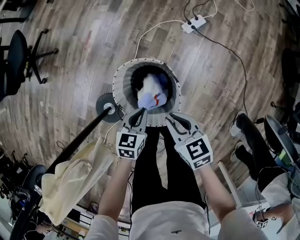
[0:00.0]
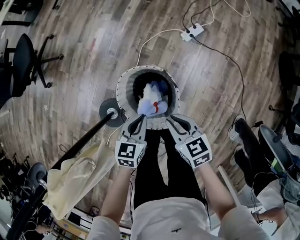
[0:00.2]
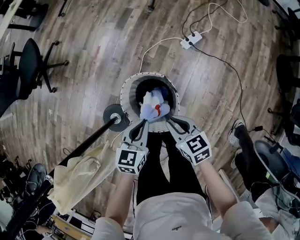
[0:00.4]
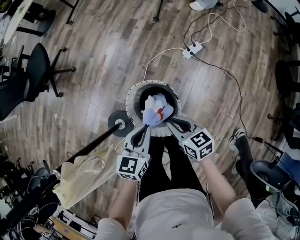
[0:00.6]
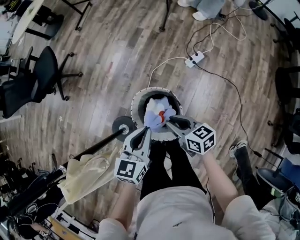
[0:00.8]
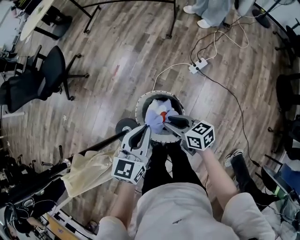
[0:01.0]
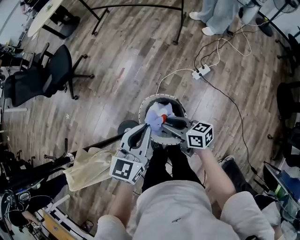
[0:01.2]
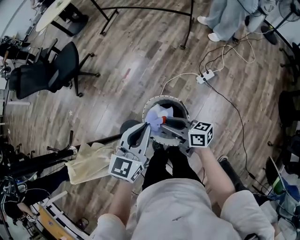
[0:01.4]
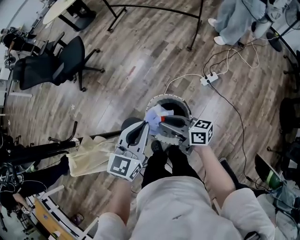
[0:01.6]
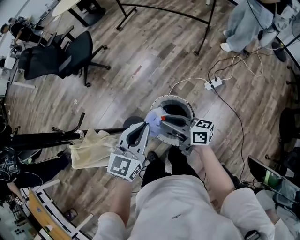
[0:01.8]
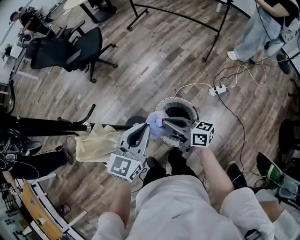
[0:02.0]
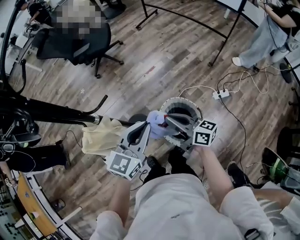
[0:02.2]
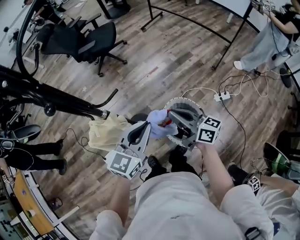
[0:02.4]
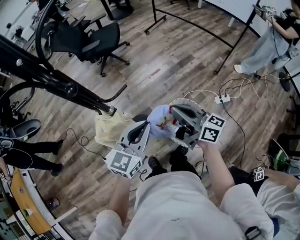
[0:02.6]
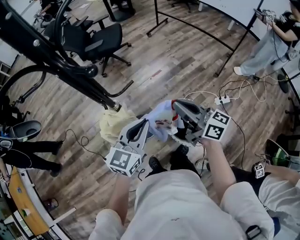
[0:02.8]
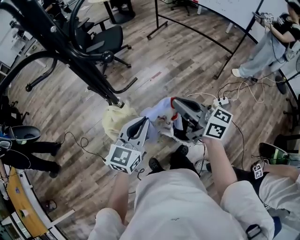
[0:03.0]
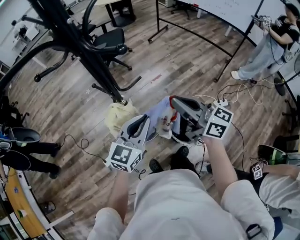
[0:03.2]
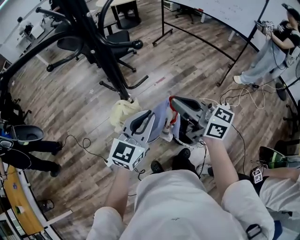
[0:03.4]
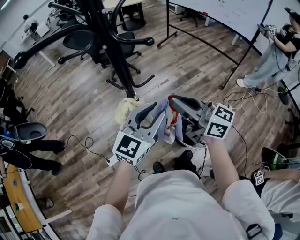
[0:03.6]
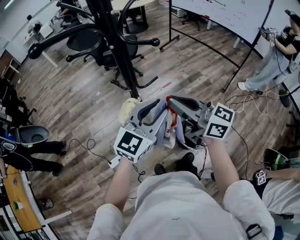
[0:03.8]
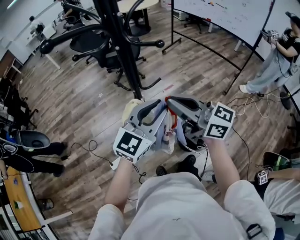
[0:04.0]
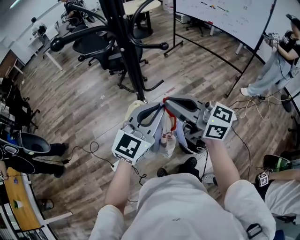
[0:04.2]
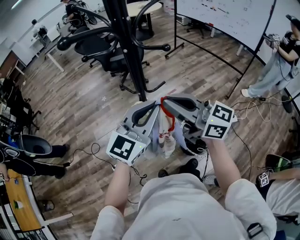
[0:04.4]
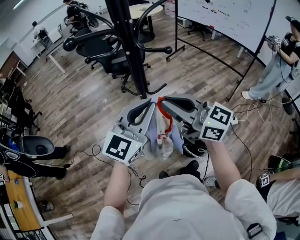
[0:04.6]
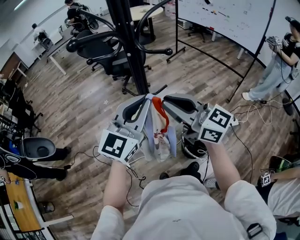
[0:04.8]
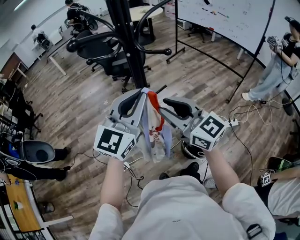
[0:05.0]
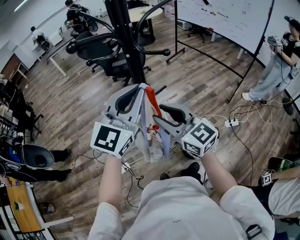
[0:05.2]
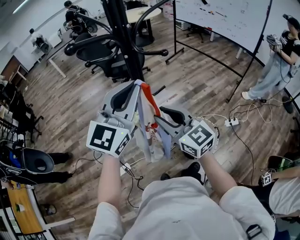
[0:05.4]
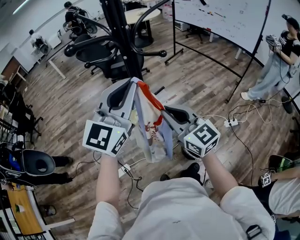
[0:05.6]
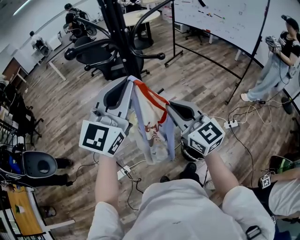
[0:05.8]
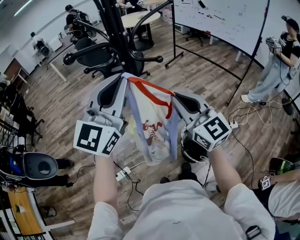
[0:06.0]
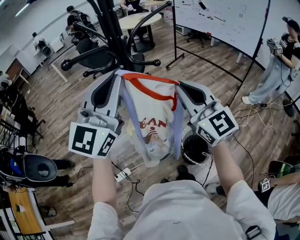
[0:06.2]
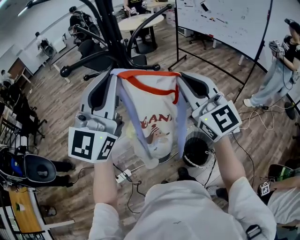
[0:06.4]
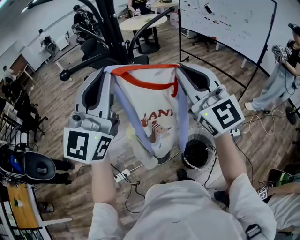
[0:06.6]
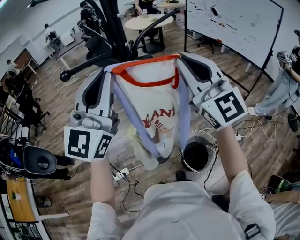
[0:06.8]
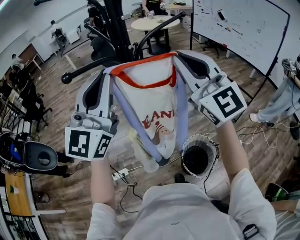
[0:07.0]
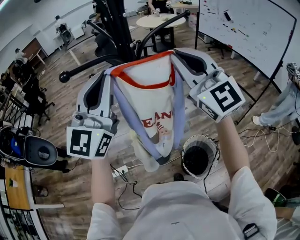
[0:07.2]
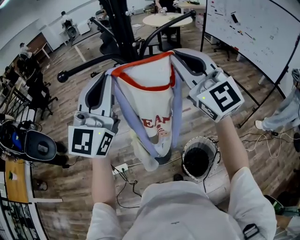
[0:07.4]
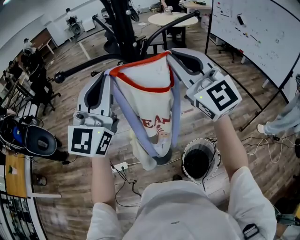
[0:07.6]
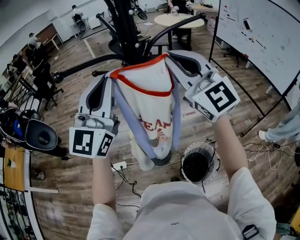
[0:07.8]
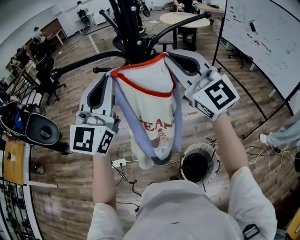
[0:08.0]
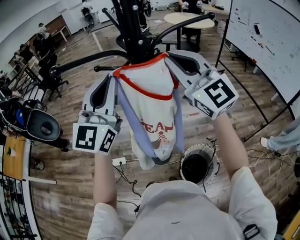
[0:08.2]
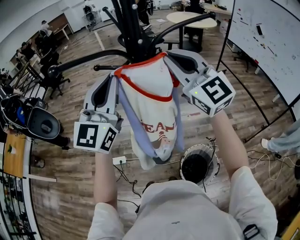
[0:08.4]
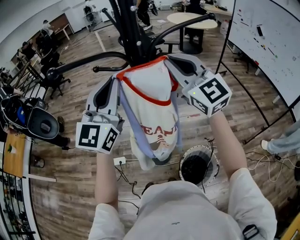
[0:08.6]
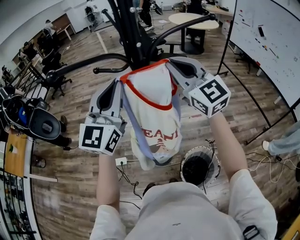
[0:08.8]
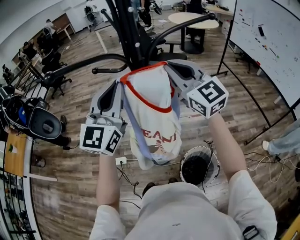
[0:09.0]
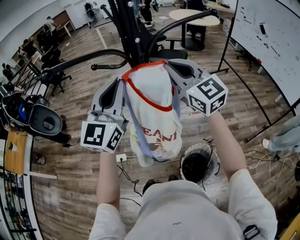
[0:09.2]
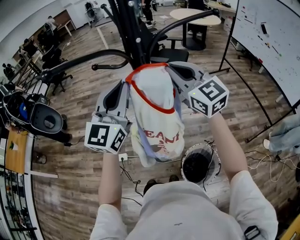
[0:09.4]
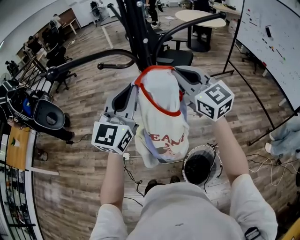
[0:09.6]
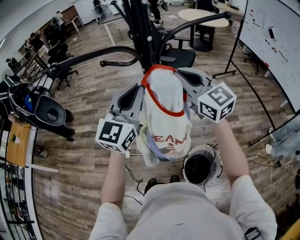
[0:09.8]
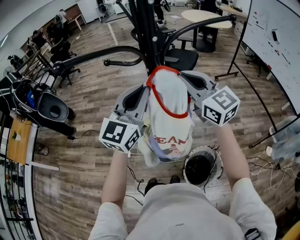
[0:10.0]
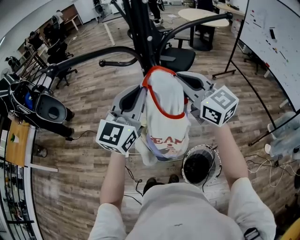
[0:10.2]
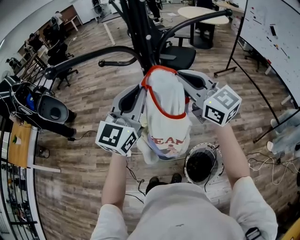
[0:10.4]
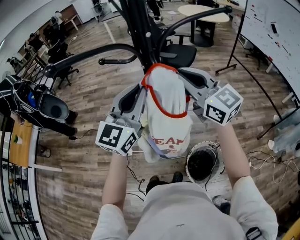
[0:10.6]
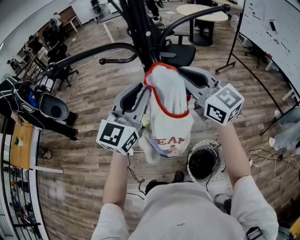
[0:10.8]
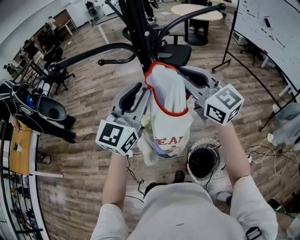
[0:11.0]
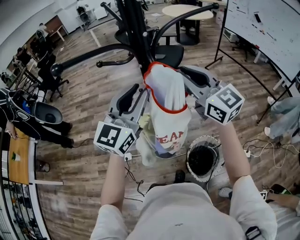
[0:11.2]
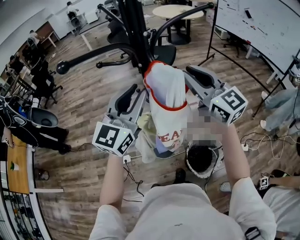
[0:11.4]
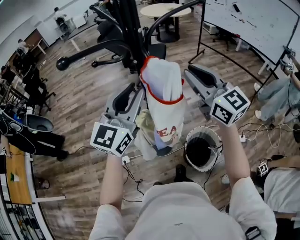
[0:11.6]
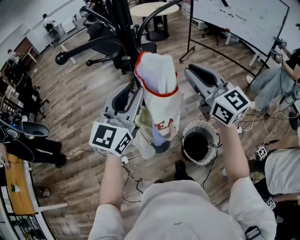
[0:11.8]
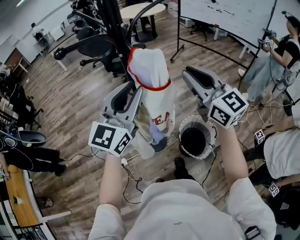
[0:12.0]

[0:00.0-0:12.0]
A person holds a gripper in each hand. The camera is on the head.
0:00.0 to 0:01.6: The right gripper shifts approximately 25 cm upward, and tilts its fingers about 40 degrees upward. Meanwhile the left gripper moves upward, some 40 cm, and rotates approximately 30 degrees.
0:01.6 to 0:03.0: The right gripper travels upward and to the left by approximately 25 cm, changes its angle by approximately 20 degrees, and closes its fingers, while the left gripper shifts roughly 25 cm to the left.
0:03.0 to 0:04.4: The right gripper shifts approximately 20 cm to the left and upward, and turns by some 20 degrees. Meanwhile the left gripper heads upward and to the left, covering approximately 15 cm, changes its angle by roughly 20 degrees, and opens, then closes once more.
0:04.4 to 0:06.0: The left gripper is displaced upward by some 15 cm; the right gripper changes its angle by approximately 40 degrees, and opens and closes again.
0:06.0 to 0:07.6: The left gripper changes place by about 5 cm, and turns by some 30 degrees. Meanwhile the right gripper shifts approximately 20 cm upward and forward, and swivels some 30 degrees.
0:07.6 to 0:09.0: The left gripper goes some 5 cm downward; the right gripper travels forward and downward by approximately 10 cm.
0:09.0 to 0:10.4: The left gripper shifts roughly 5 cm downward.
0:10.4 to 0:12.0: The left gripper shifts by approximately 5 cm, swivels roughly 30 degrees, and opens its fingers; the right gripper moves some 15 cm, and turns by some 30 degrees.

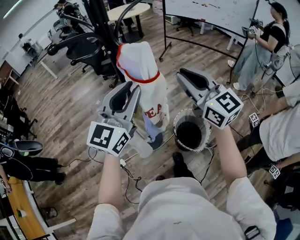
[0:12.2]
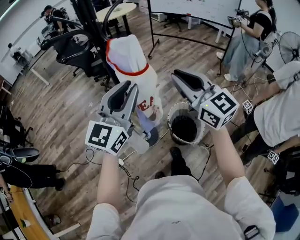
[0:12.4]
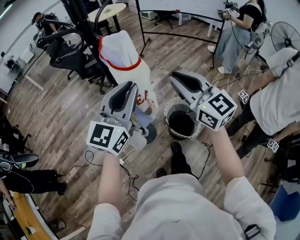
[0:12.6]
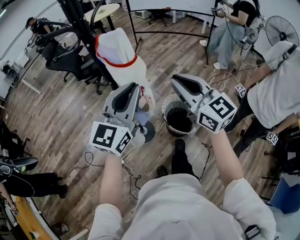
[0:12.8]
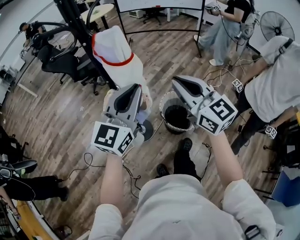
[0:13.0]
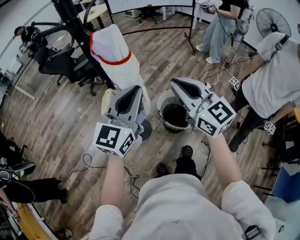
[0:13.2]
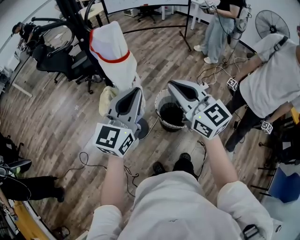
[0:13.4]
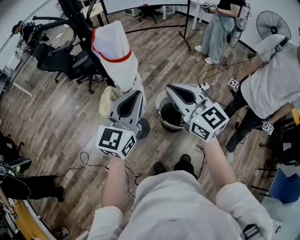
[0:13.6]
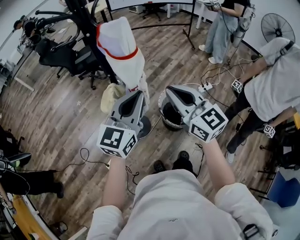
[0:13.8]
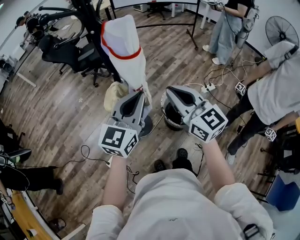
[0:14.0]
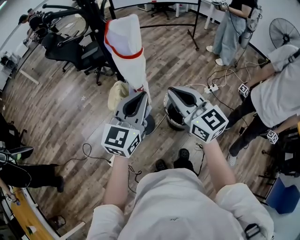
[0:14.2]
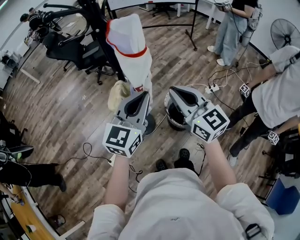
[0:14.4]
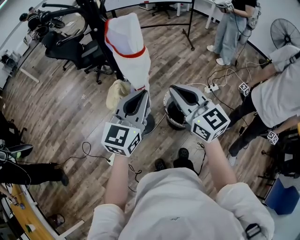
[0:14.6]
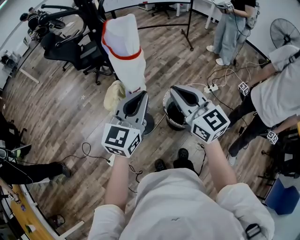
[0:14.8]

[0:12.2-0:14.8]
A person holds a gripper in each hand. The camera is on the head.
0:12.2 to 0:13.4: The right gripper heads backward, covering about 15 cm. Meanwhile the left gripper shifts about 10 cm backward, to the right and downward.
0:13.4 to 0:14.8: The grippers move only a little.

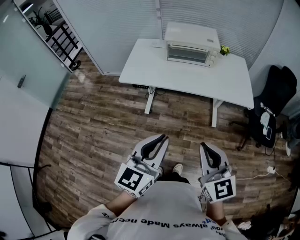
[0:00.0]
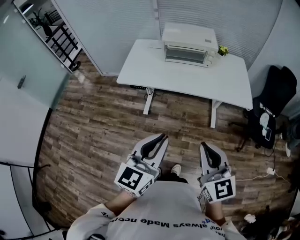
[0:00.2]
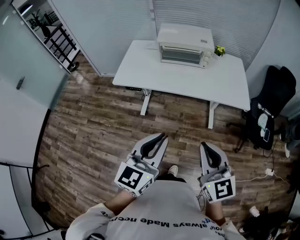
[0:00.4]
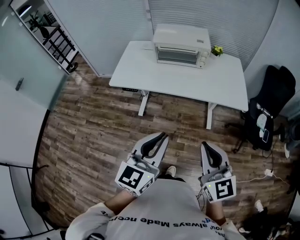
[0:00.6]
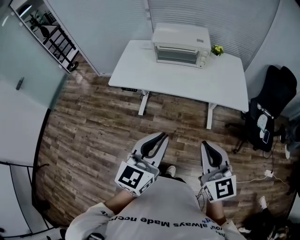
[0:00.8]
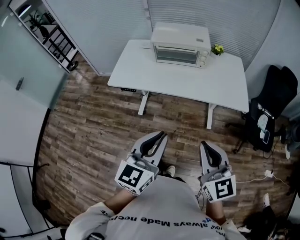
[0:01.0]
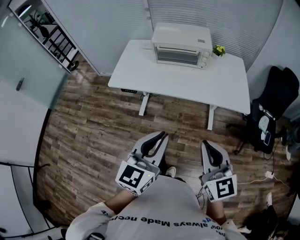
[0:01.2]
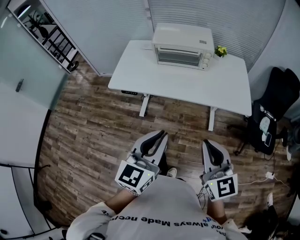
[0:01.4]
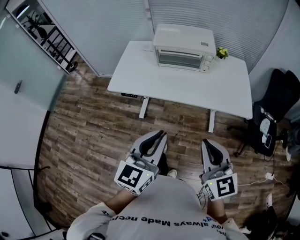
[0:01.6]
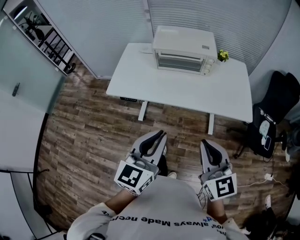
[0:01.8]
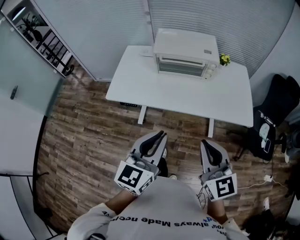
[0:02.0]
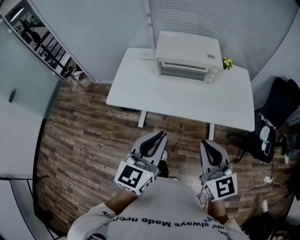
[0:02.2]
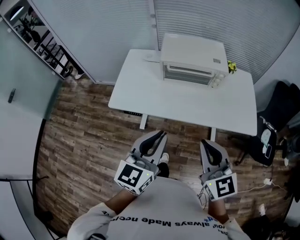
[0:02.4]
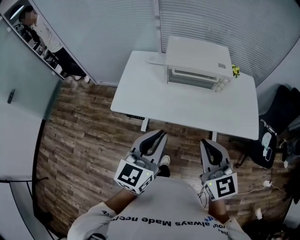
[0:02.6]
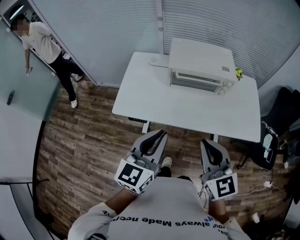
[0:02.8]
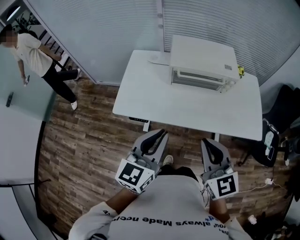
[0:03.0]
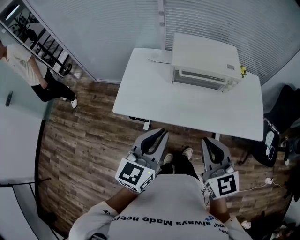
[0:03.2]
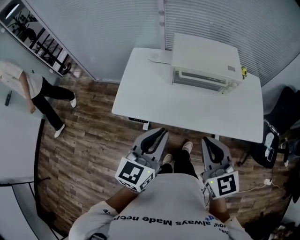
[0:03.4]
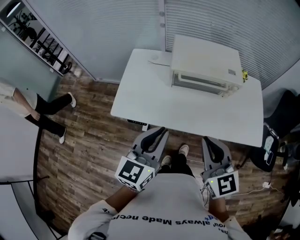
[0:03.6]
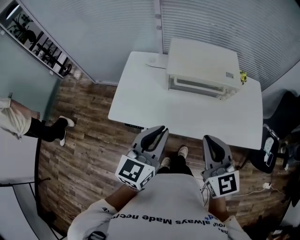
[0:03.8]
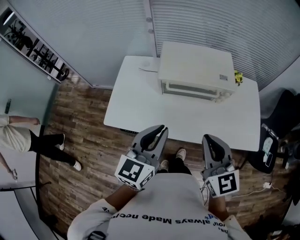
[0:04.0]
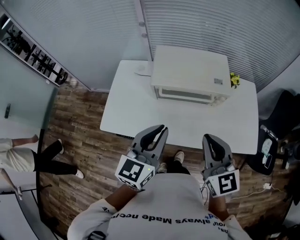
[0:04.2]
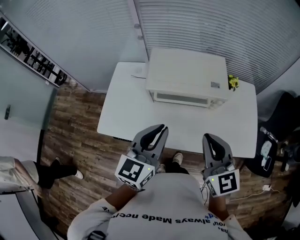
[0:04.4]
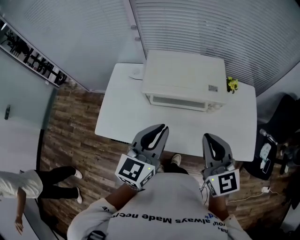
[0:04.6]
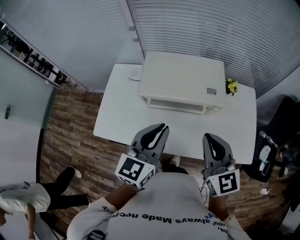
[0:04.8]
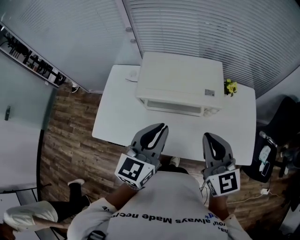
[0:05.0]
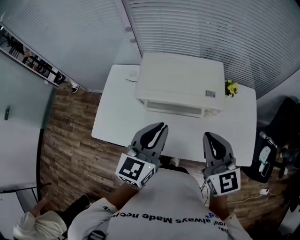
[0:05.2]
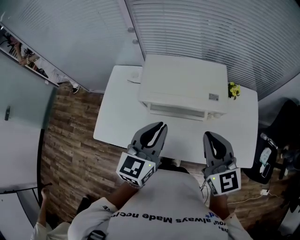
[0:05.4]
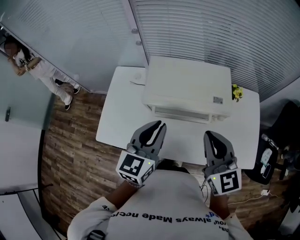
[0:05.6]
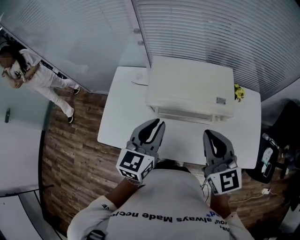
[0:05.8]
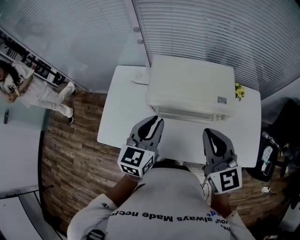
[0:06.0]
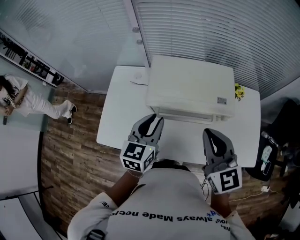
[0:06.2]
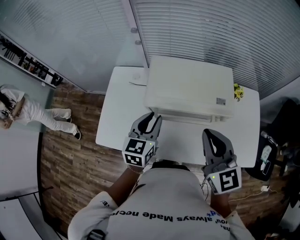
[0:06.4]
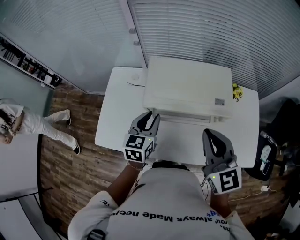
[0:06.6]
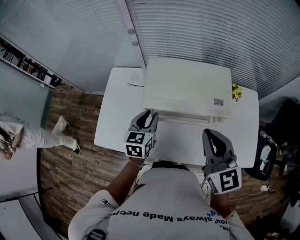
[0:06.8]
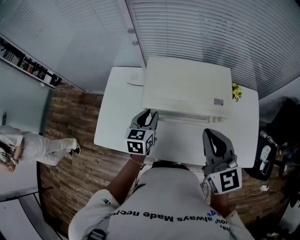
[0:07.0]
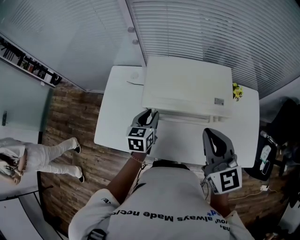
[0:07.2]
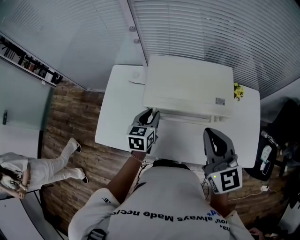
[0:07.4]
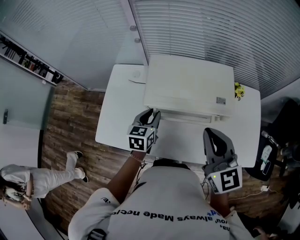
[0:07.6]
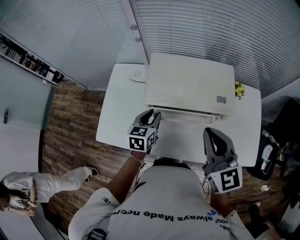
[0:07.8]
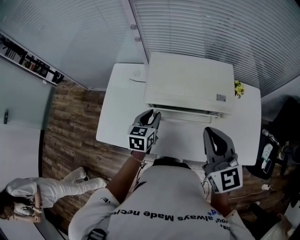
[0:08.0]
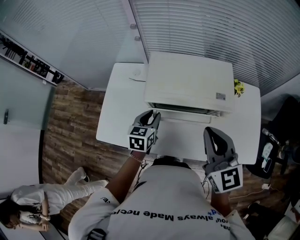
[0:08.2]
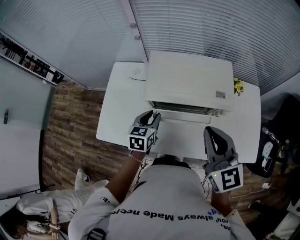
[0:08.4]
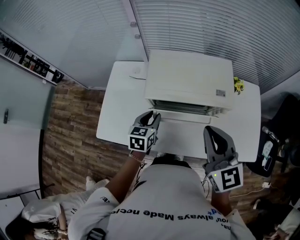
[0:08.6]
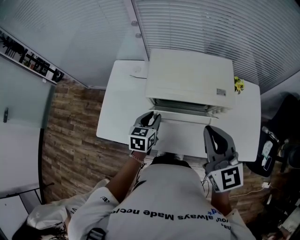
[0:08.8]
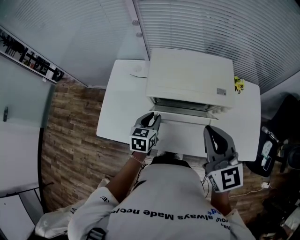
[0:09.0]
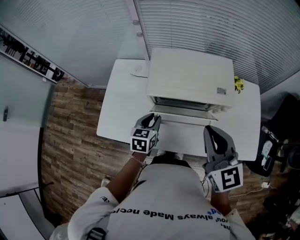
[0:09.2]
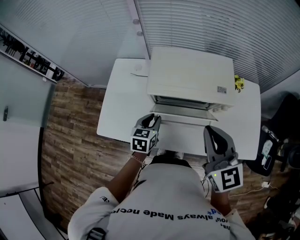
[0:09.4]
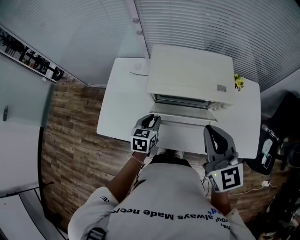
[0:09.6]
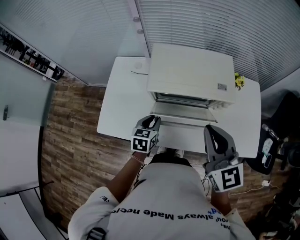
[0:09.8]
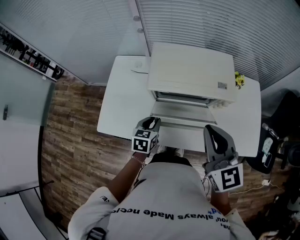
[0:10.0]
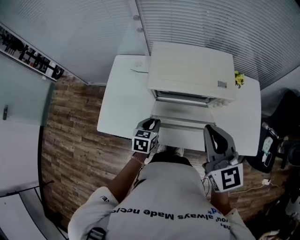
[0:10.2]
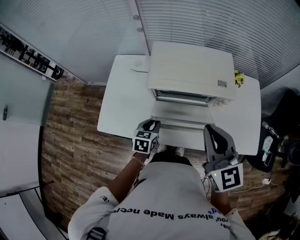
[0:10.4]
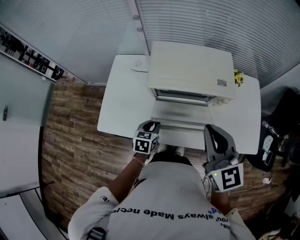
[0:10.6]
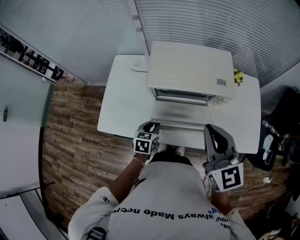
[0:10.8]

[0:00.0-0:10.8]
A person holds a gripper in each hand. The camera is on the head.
0:00.0 to 0:01.6: Both grippers travel together forward and to the right, about 15 cm.
0:01.6 to 0:03.0: The two grippers go some 25 cm forward and to the left.
0:03.0 to 0:04.6: The two grippers go roughly 20 cm forward and to the right.
0:04.6 to 0:06.2: The left gripper moves forward, downward and to the left, approximately 15 cm; the right gripper goes about 10 cm forward.
0:06.2 to 0:07.8: The left gripper is displaced downward by some 10 cm.
0:07.8 to 0:09.2: The left gripper travels backward by roughly 5 cm.
0:09.2 to 0:10.8: The left gripper travels downward and backward by roughly 10 cm.
